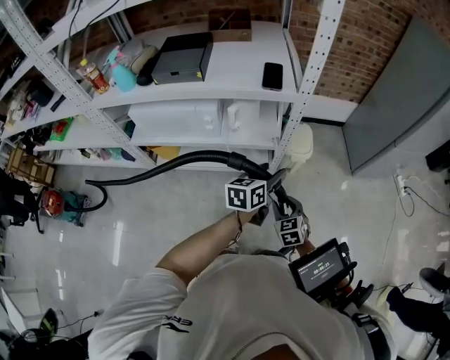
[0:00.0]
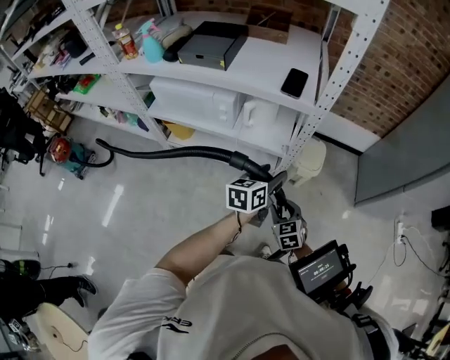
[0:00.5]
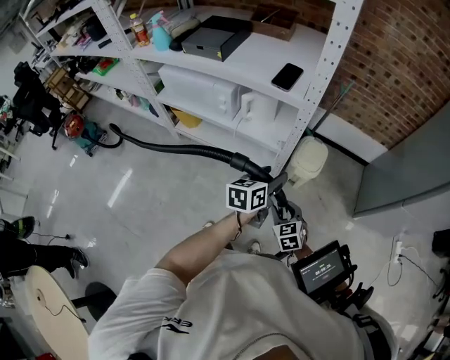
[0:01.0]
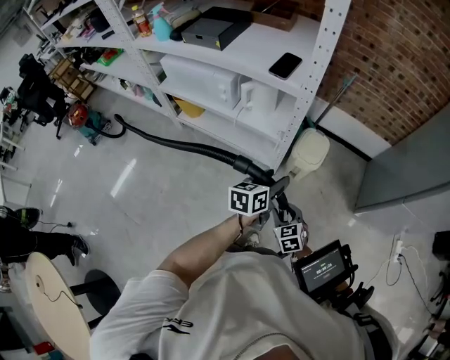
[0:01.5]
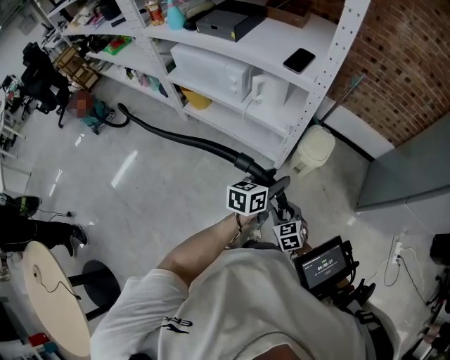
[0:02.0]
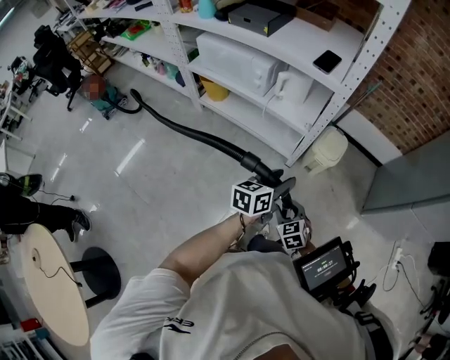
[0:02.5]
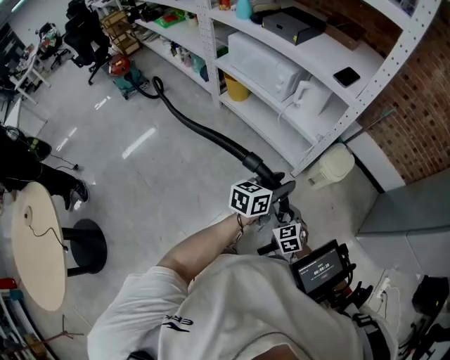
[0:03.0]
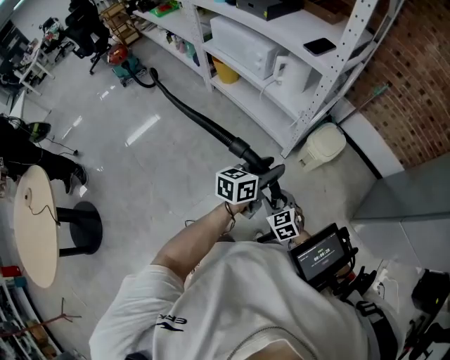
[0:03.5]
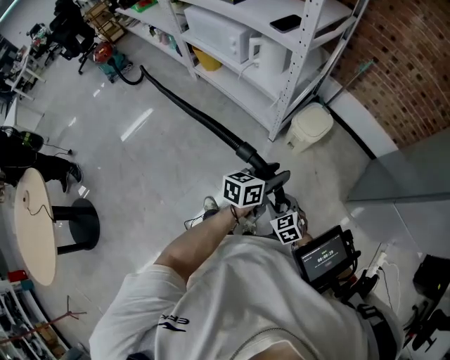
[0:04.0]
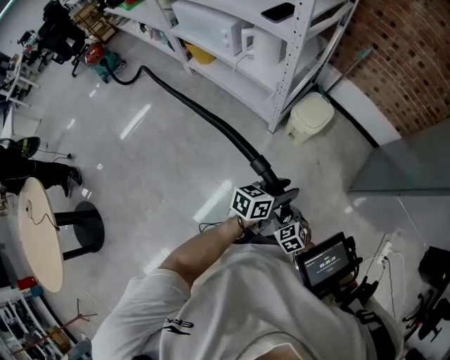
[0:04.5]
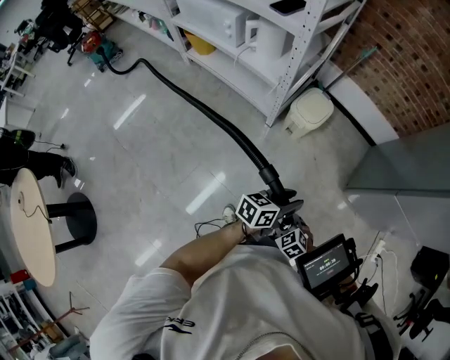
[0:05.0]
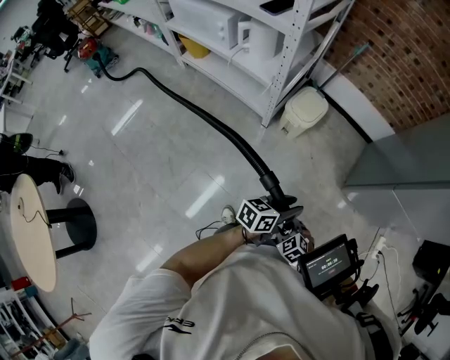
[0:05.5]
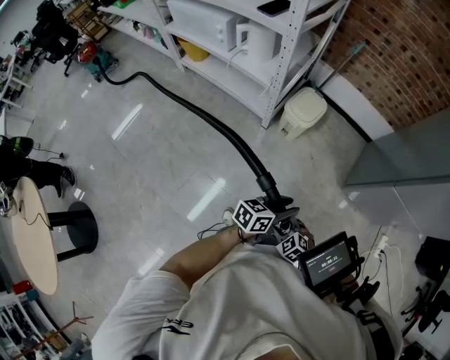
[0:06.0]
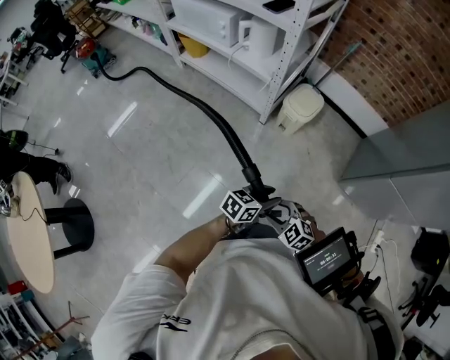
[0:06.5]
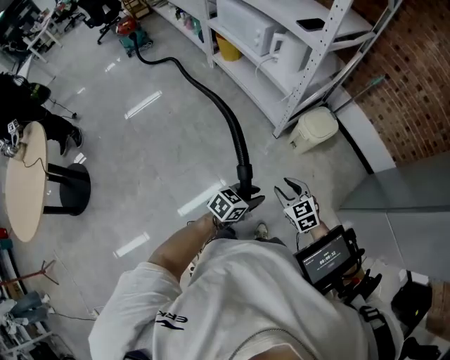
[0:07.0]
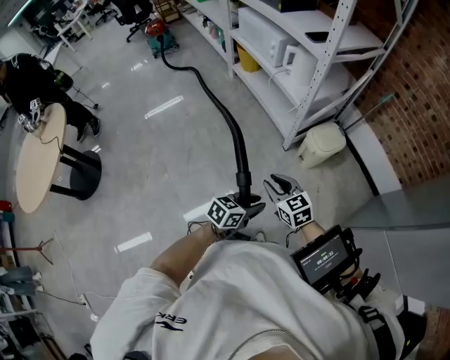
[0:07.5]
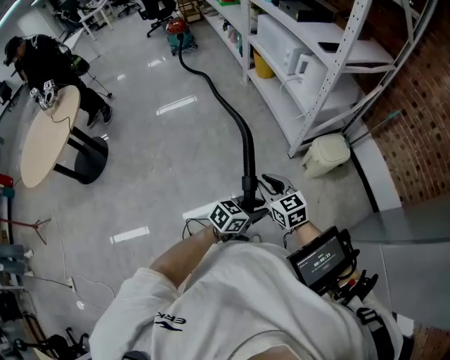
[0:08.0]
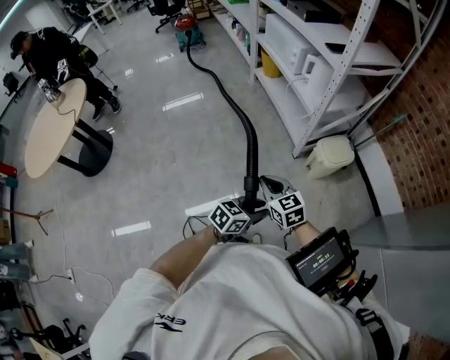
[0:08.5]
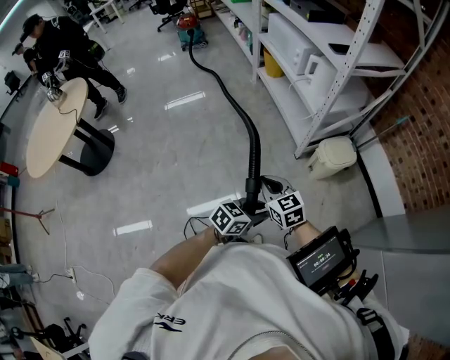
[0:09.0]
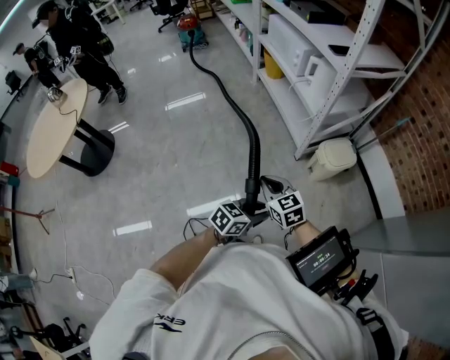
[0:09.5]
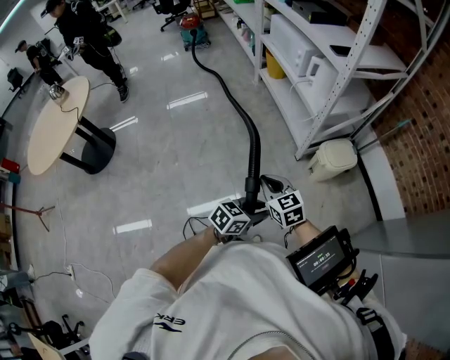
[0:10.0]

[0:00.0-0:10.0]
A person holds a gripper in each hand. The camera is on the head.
0:00.0 to 0:02.0: The right gripper changes place by some 15 cm, and turns by about 30 degrees, while the left gripper shifts by roughly 15 cm, and changes its angle by some 20 degrees.
0:02.0 to 0:04.0: The two grippers go roughly 20 cm to the right and backward. The right gripper changes its angle by some 20 degrees.
0:04.0 to 0:06.0: The left gripper travels backward, to the right and downward by about 15 cm, and turns by approximately 20 degrees, while the right gripper goes approximately 15 cm backward, downward and to the right.
0:06.0 to 0:08.0: The left gripper shifts by some 10 cm, and swivels roughly 30 degrees. The right gripper heads upward, covering roughly 20 cm, and turns by roughly 30 degrees.
0:08.0 to 0:10.0: The right gripper closes up.

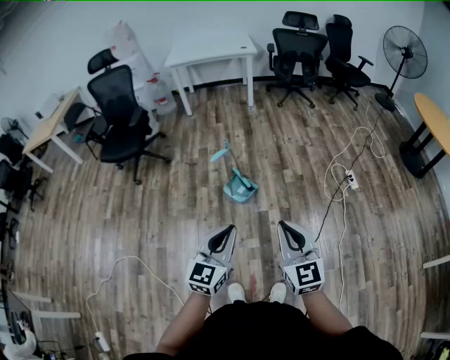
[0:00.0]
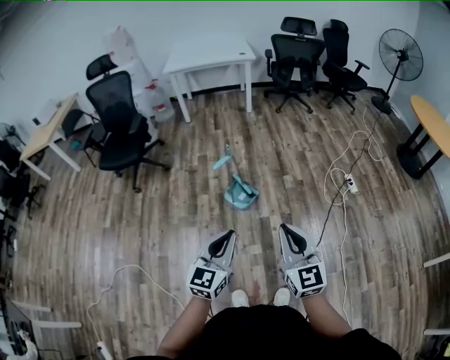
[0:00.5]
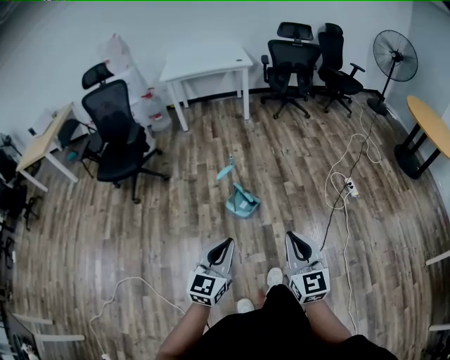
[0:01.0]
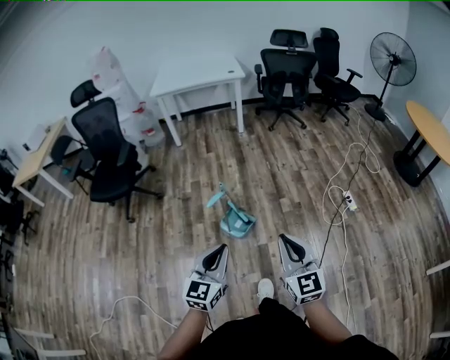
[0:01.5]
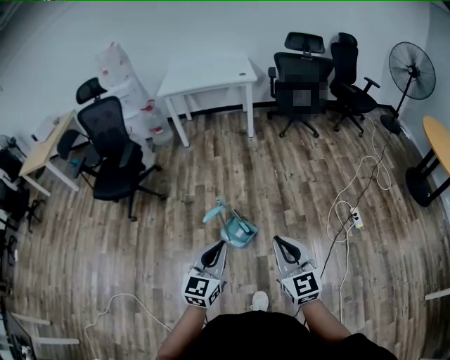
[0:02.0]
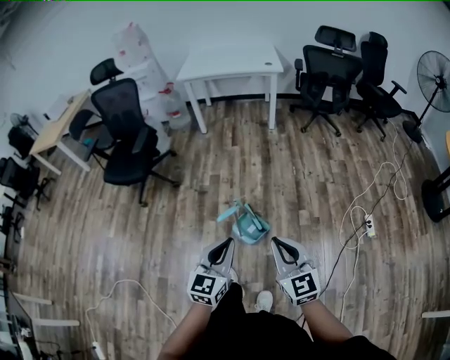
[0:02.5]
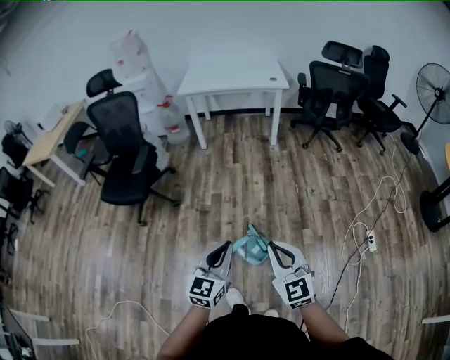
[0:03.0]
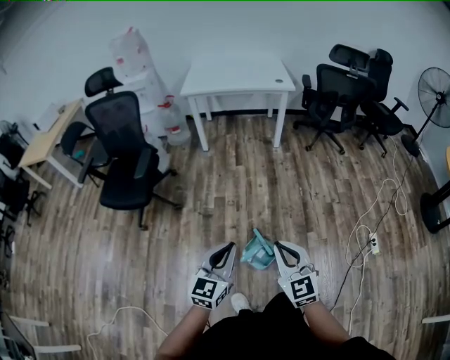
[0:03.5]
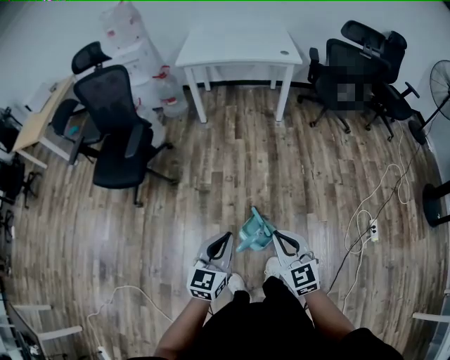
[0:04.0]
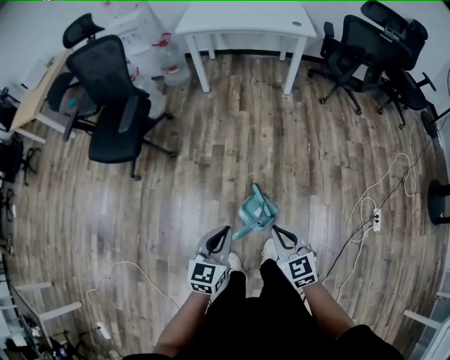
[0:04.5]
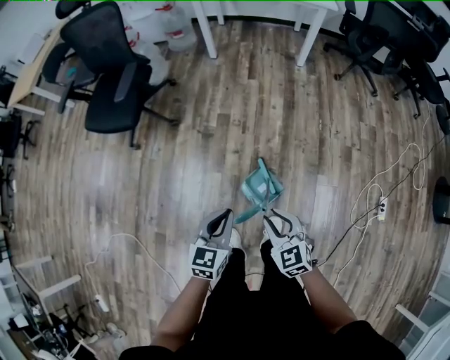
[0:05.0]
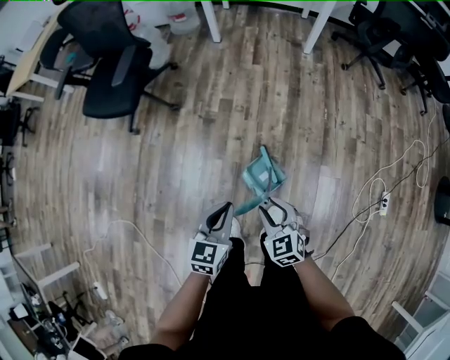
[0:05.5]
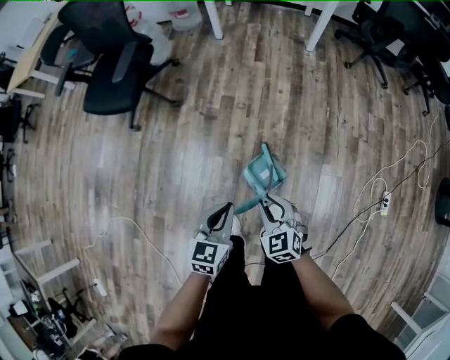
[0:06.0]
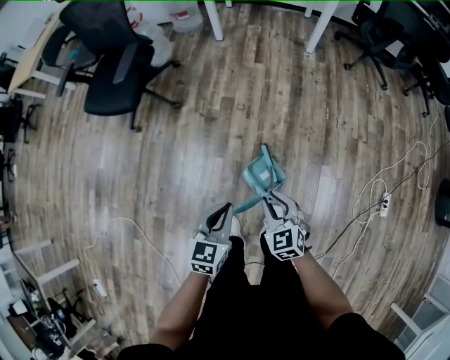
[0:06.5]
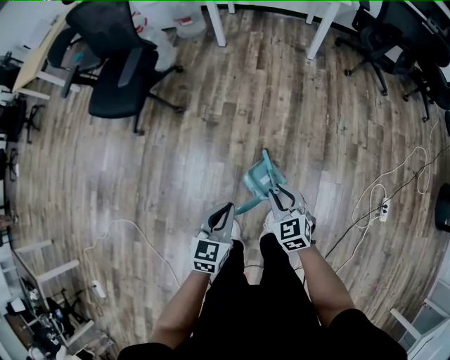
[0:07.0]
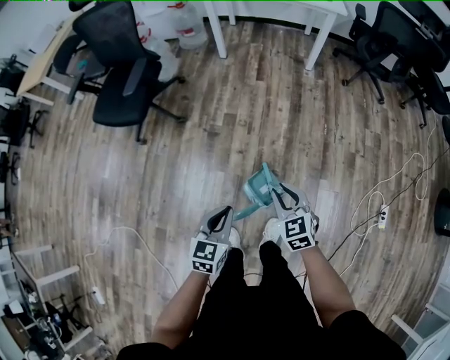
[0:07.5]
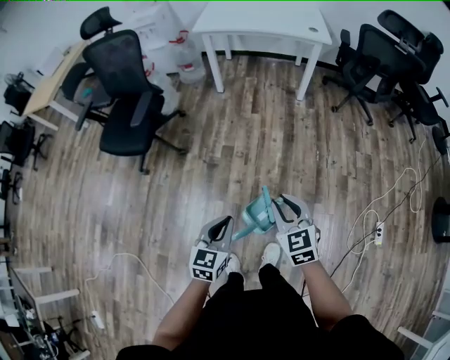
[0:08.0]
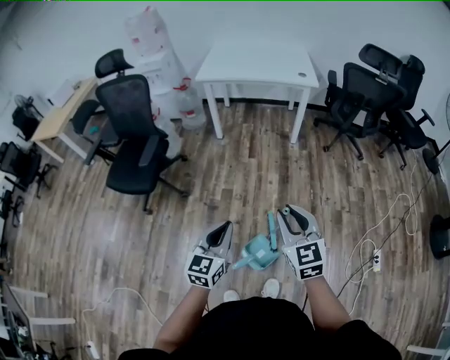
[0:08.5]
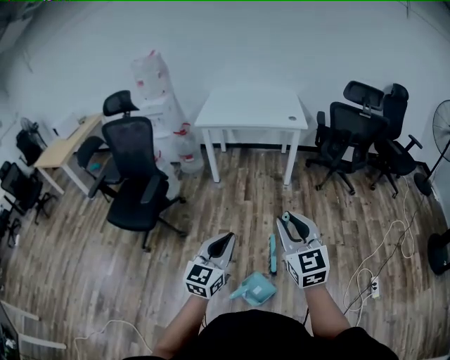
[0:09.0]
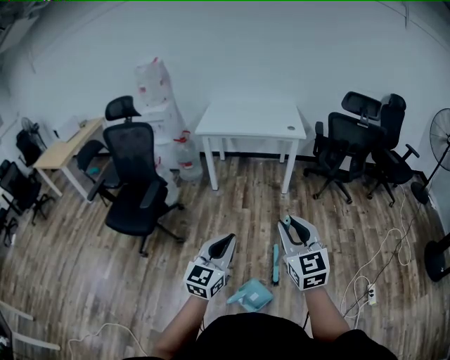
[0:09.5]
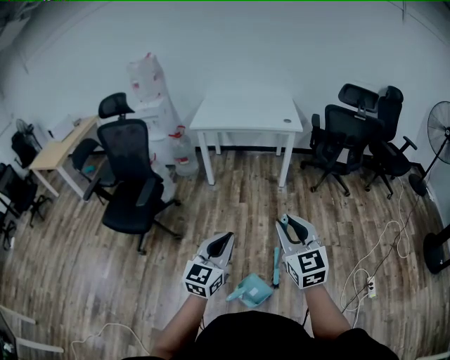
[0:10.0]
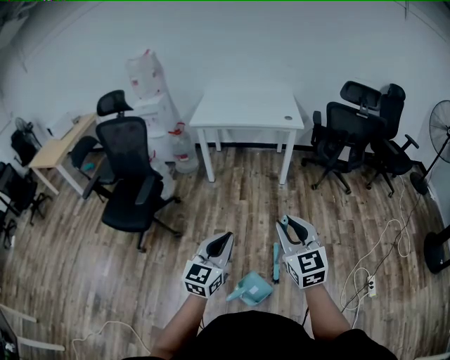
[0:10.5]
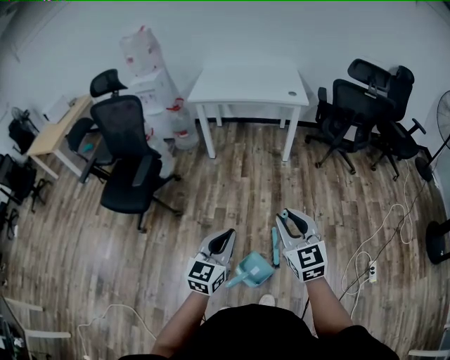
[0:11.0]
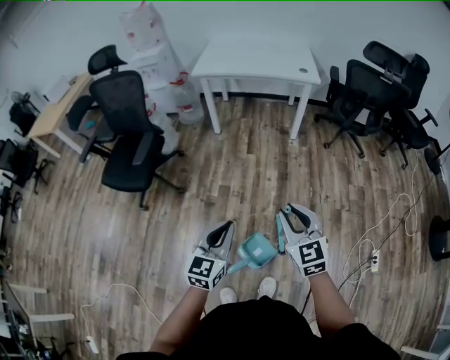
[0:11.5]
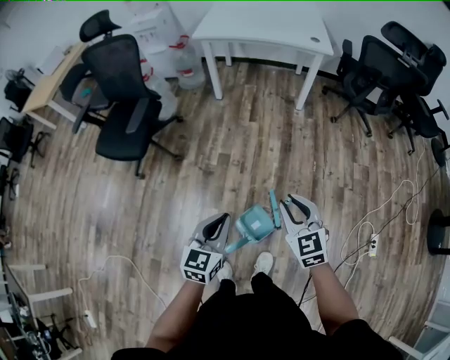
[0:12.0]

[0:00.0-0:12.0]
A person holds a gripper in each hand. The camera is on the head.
0:00.0 to 0:02.0: Both grippers travel together forward, roughly 25 cm.
0:02.0 to 0:04.0: The grippers both shift forward and to the left by some 25 cm.
0:04.0 to 0:06.0: Both grippers travel together downward, roughly 15 cm. The right gripper changes its angle by about 20 degrees, and opens.
0:06.0 to 0:08.0: The right gripper moves upward and forward, roughly 15 cm. The left gripper is displaced upward by roughly 5 cm.
0:08.0 to 0:10.0: The right gripper is displaced upward by roughly 20 cm, and turns by approximately 20 degrees, while the left gripper travels upward and forward by roughly 20 cm, and changes its angle by approximately 30 degrees.
0:10.0 to 0:12.0: The grippers both shift downward by approximately 15 cm. The right gripper swivels about 20 degrees, while the left gripper swivels approximately 20 degrees.

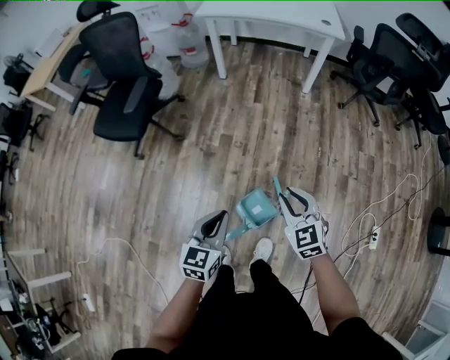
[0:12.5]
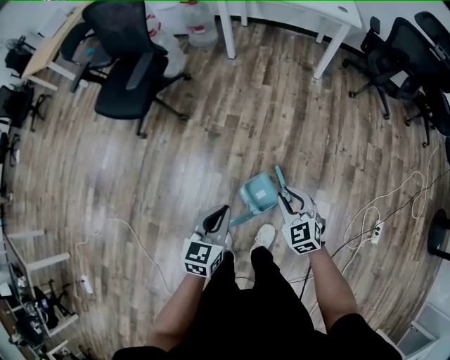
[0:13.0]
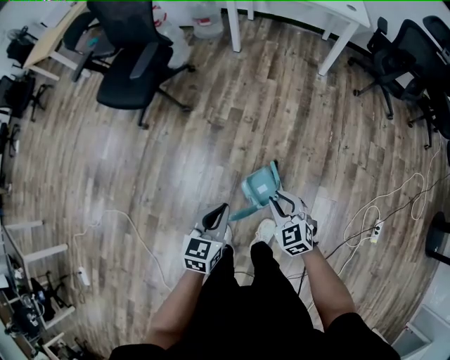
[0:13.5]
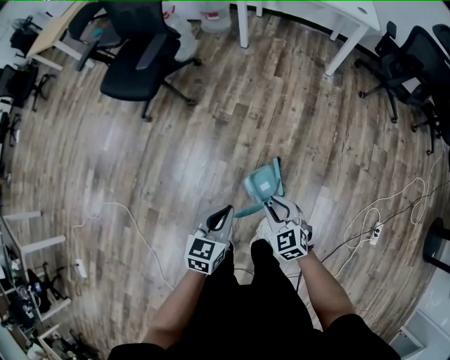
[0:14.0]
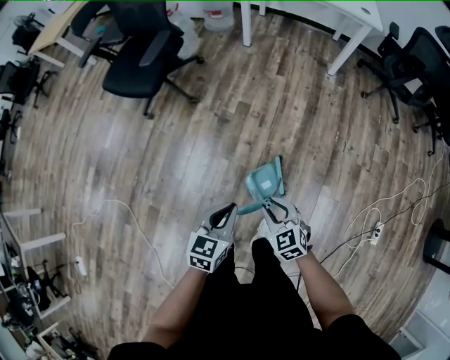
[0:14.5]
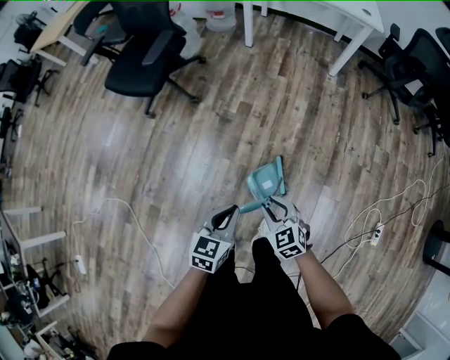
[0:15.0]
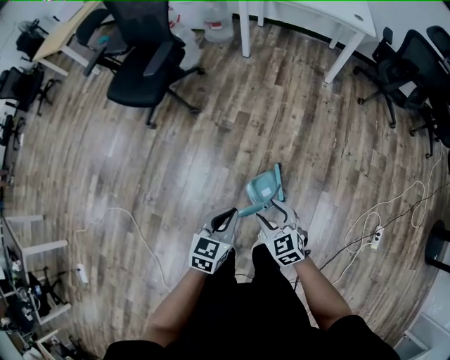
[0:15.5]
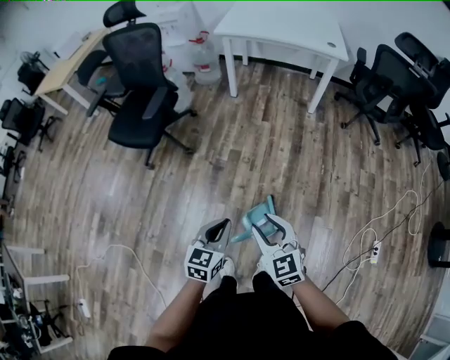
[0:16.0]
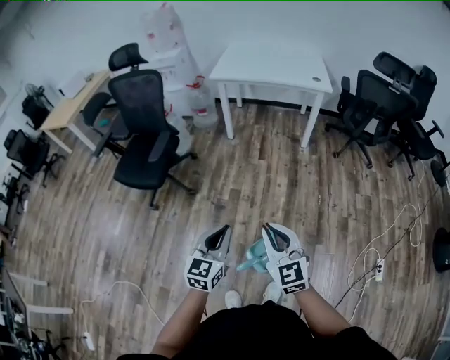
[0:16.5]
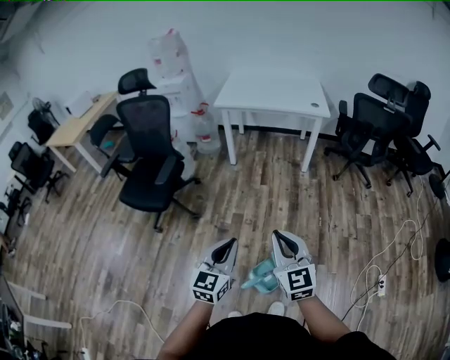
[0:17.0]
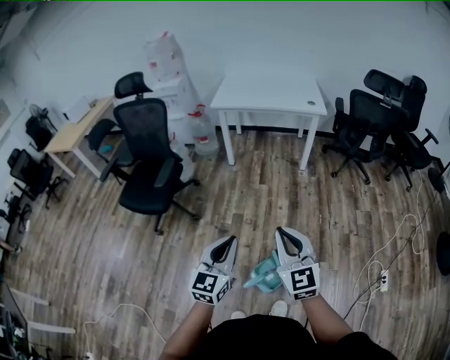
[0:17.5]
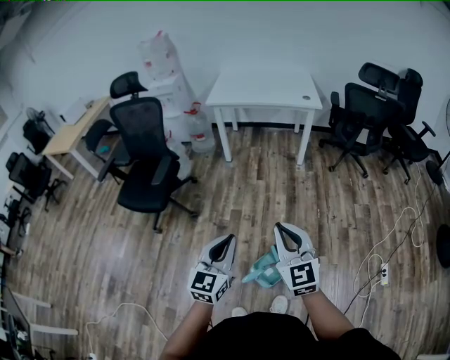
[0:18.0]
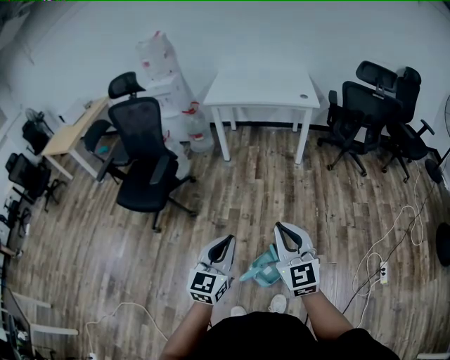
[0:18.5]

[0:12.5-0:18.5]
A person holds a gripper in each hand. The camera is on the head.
0:12.5 to 0:14.5: The left gripper is displaced backward and downward by approximately 10 cm. The right gripper is displaced downward, to the left and backward by some 20 cm.
0:14.5 to 0:16.5: The left gripper shifts some 20 cm upward and forward, and changes its angle by roughly 20 degrees; the right gripper shifts about 25 cm upward, turns by roughly 30 degrees, and opens, then closes once more.
0:16.5 to 0:18.5: Both grippers travel together upward, approximately 5 cm.
